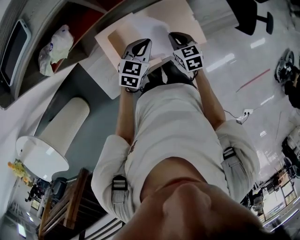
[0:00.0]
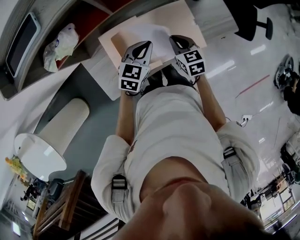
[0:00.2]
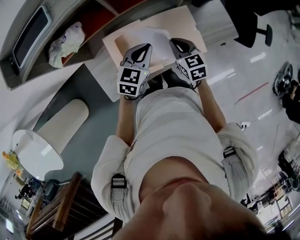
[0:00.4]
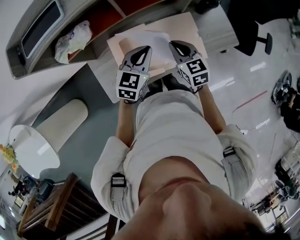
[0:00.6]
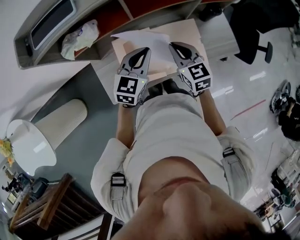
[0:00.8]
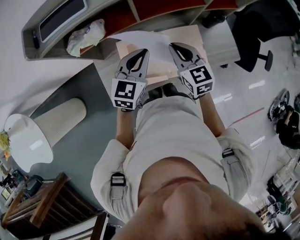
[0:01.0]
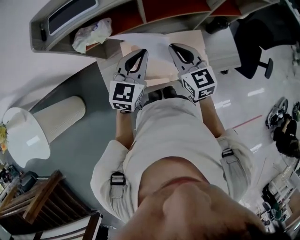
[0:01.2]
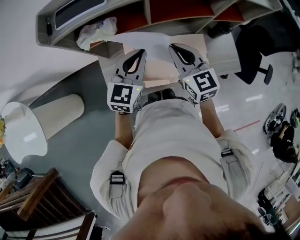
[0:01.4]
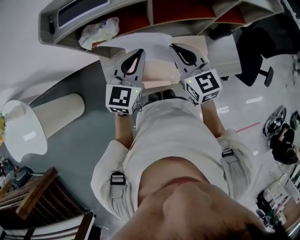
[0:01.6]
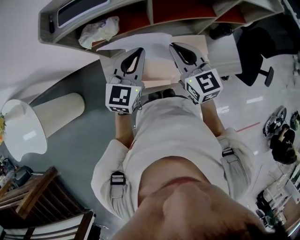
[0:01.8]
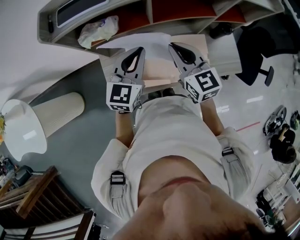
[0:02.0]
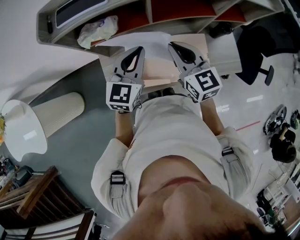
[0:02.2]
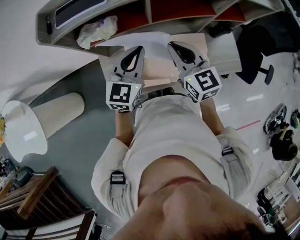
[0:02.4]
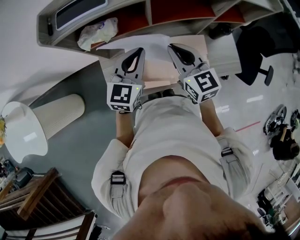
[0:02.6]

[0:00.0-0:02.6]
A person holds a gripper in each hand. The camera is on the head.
0:00.0 to 0:01.2: The two grippers go roughly 25 cm upward and to the left. The left gripper swivels some 30 degrees. The right gripper swivels about 30 degrees.
0:01.2 to 0:02.6: The grippers stay close to where they were, moving slightly.

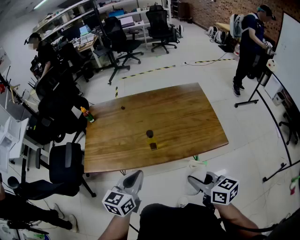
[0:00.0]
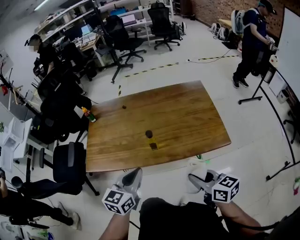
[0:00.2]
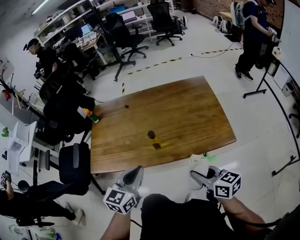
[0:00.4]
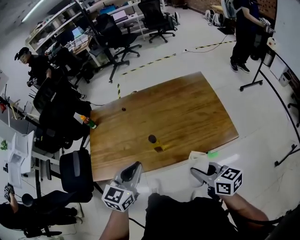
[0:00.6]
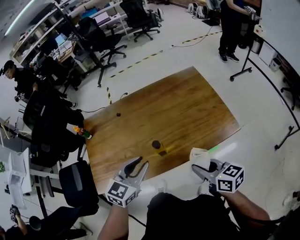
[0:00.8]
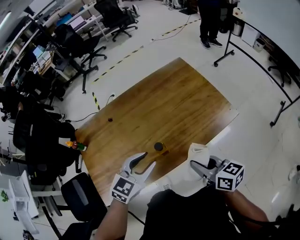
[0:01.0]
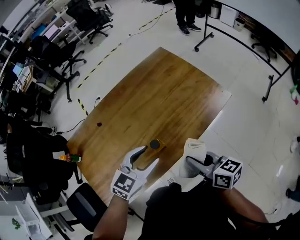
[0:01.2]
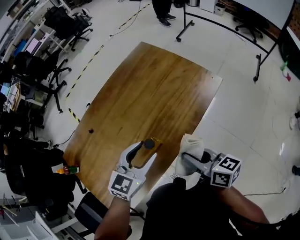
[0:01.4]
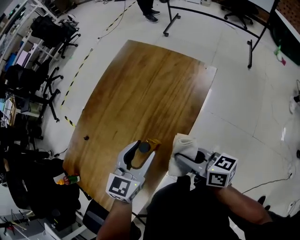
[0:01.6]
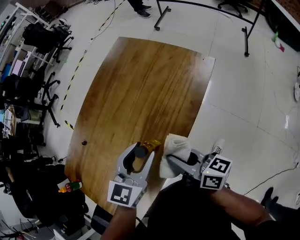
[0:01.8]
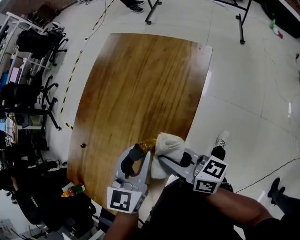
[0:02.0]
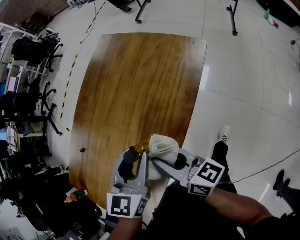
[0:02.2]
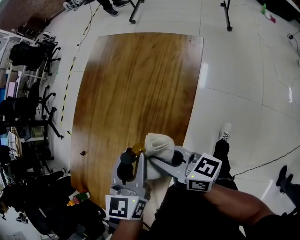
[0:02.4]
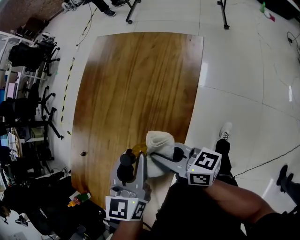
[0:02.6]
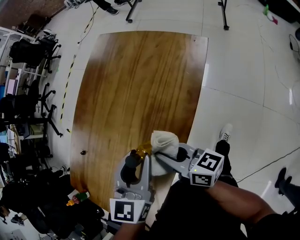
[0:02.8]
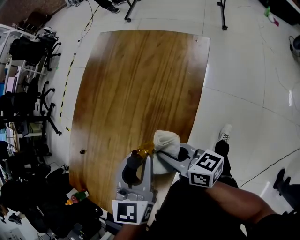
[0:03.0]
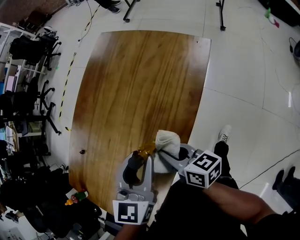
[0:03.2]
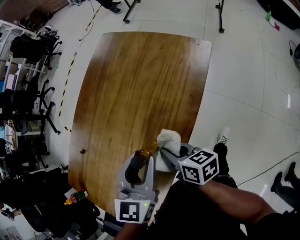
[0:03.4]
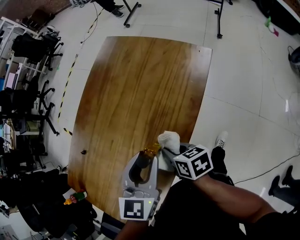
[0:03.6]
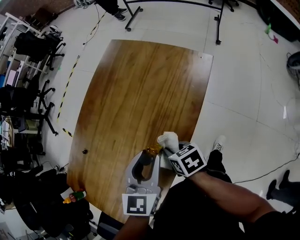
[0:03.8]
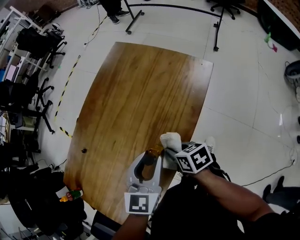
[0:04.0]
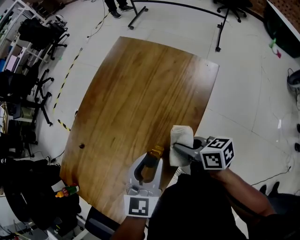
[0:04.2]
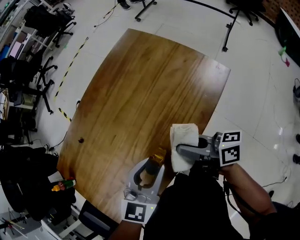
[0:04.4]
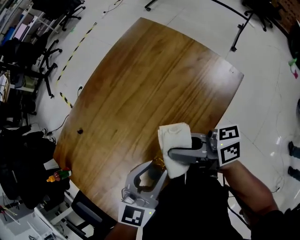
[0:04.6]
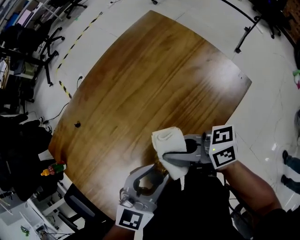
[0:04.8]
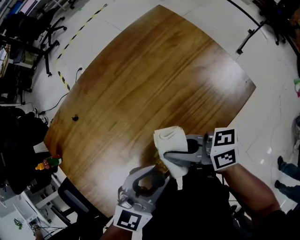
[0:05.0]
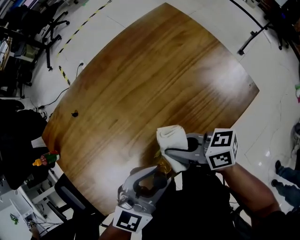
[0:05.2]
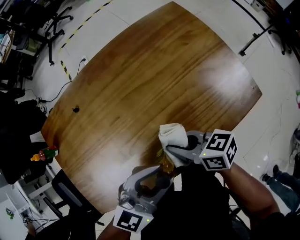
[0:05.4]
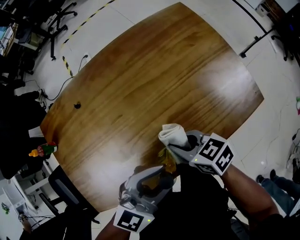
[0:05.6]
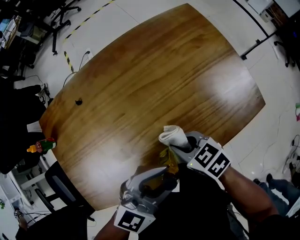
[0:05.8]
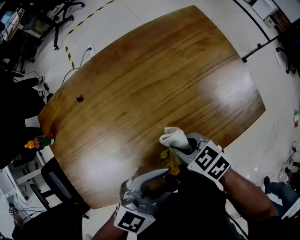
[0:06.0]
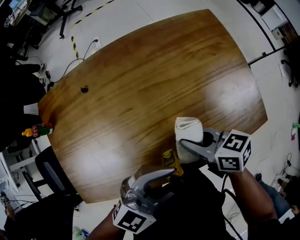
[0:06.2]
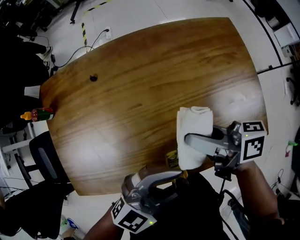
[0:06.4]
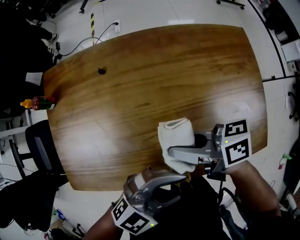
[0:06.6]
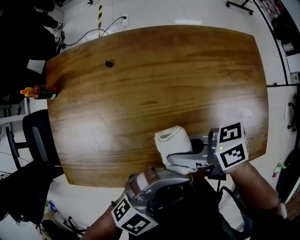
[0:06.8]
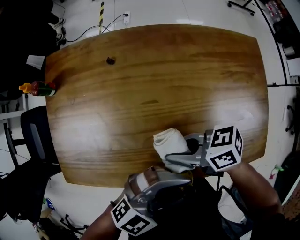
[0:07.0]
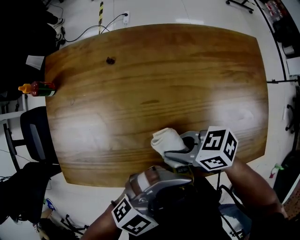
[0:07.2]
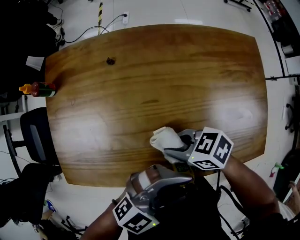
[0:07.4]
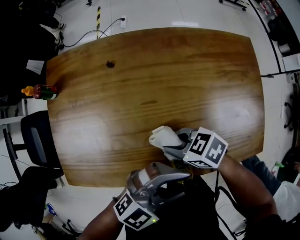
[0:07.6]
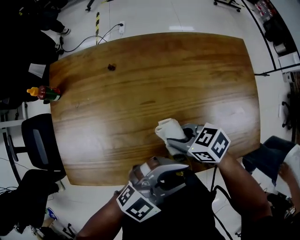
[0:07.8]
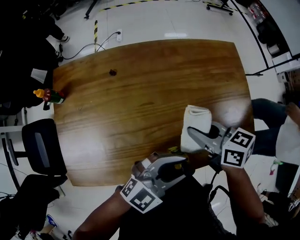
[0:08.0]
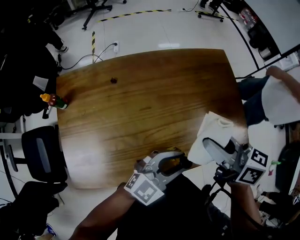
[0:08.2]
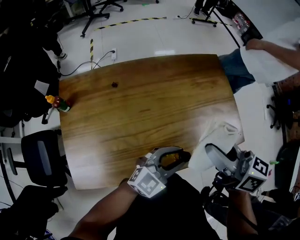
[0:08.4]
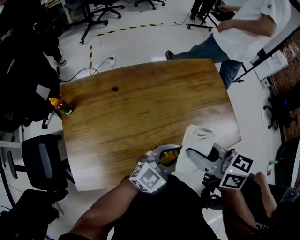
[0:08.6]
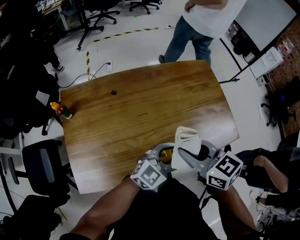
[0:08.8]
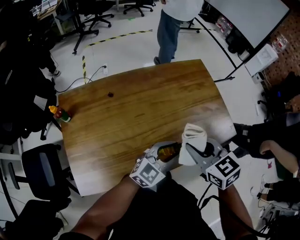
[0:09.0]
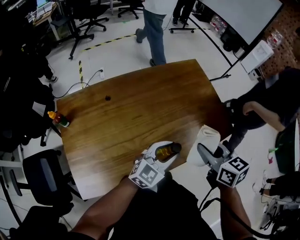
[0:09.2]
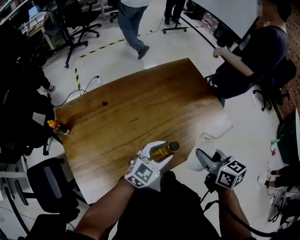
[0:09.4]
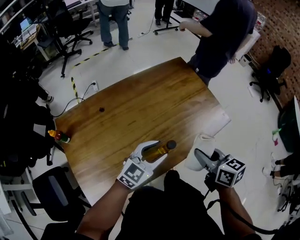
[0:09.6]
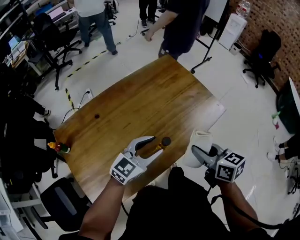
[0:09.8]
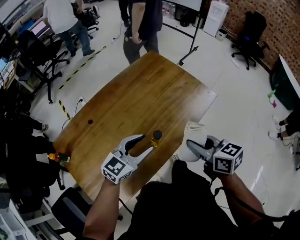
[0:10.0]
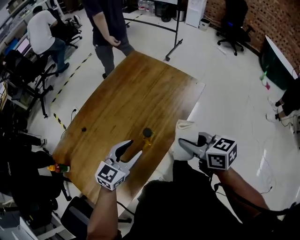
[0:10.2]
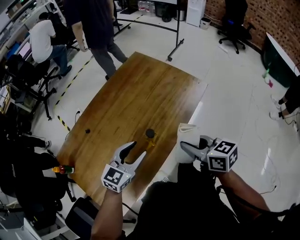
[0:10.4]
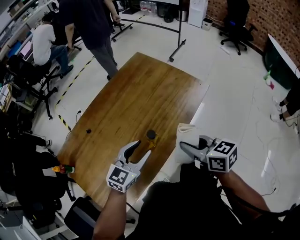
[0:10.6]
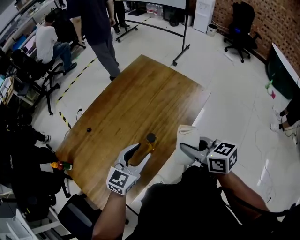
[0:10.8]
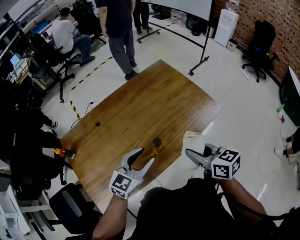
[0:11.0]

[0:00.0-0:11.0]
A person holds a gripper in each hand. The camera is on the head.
0:00.0 to 0:01.6: The right gripper moves roughly 20 cm, and swivels roughly 50 degrees; the left gripper changes place by about 20 cm, changes its angle by about 60 degrees, and opens.
0:01.6 to 0:03.2: The right gripper is displaced downward and to the left by about 10 cm.
0:03.2 to 0:04.8: The right gripper travels upward and forward by some 10 cm, and changes its angle by about 50 degrees.
0:04.8 to 0:06.2: The right gripper rotates roughly 30 degrees.
0:06.2 to 0:07.8: The right gripper shifts by approximately 10 cm, and turns by some 40 degrees.
0:07.8 to 0:09.4: The right gripper heads upward, covering roughly 20 cm, and rotates approximately 60 degrees.
0:09.4 to 0:11.0: The left gripper moves some 5 cm. Meanwhile the right gripper ends up about 5 cm from where it was.

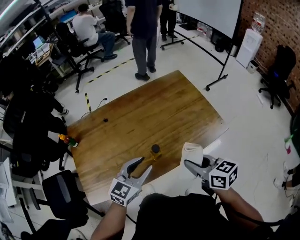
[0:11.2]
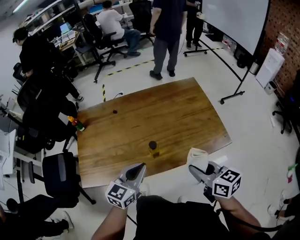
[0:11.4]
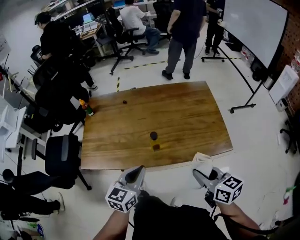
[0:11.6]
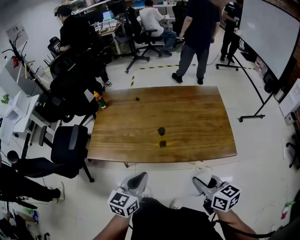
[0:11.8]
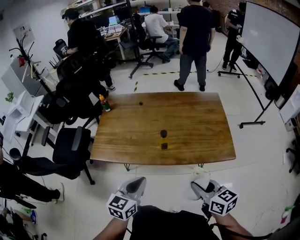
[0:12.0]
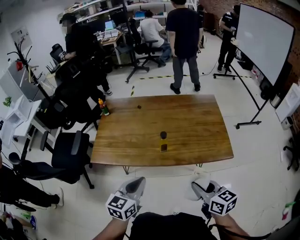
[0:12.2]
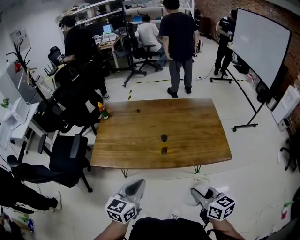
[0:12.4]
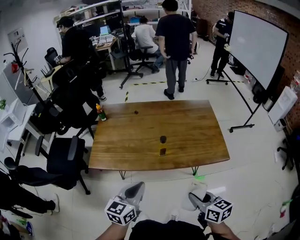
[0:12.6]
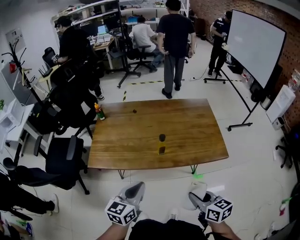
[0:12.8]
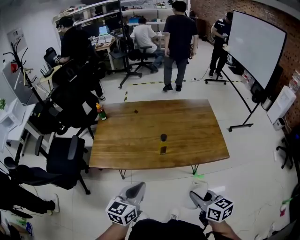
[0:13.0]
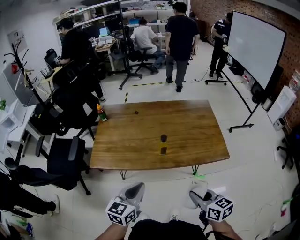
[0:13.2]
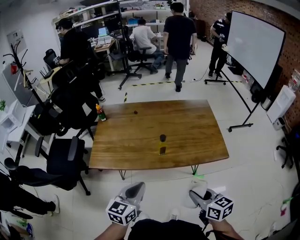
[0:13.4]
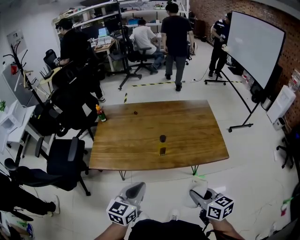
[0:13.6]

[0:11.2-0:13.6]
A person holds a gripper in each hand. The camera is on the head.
0:11.2 to 0:12.4: The left gripper ends up about 20 cm from where it was, turns by some 40 degrees, and closes its fingers; the right gripper moves approximately 15 cm.
0:12.4 to 0:13.6: The grippers stay close to where they were, moving slightly.

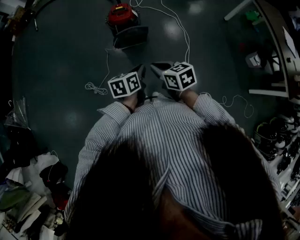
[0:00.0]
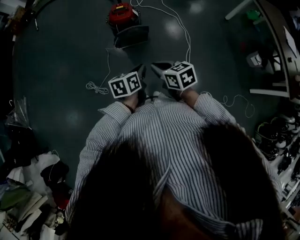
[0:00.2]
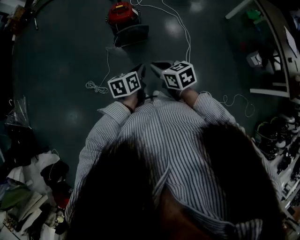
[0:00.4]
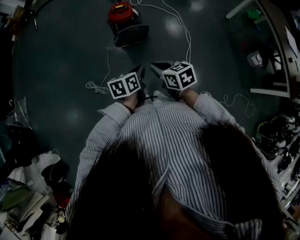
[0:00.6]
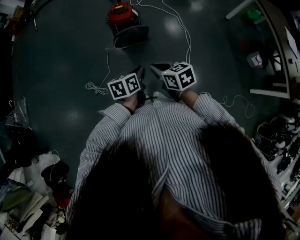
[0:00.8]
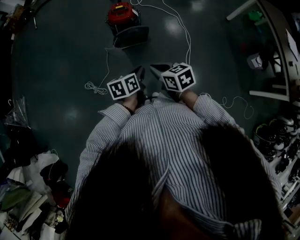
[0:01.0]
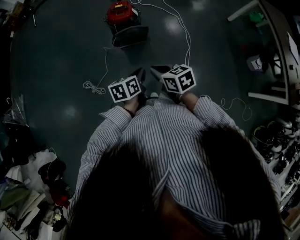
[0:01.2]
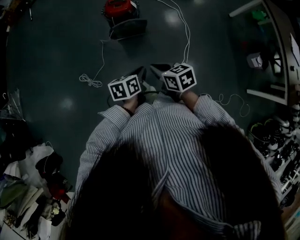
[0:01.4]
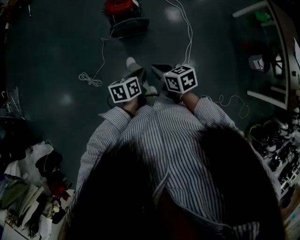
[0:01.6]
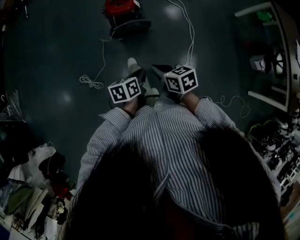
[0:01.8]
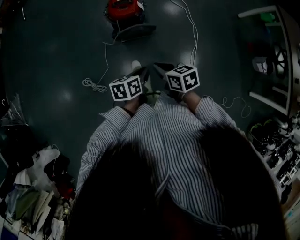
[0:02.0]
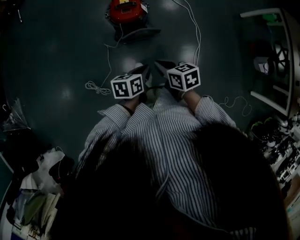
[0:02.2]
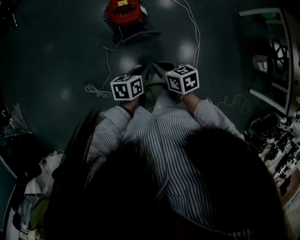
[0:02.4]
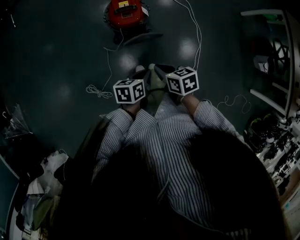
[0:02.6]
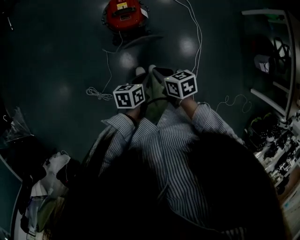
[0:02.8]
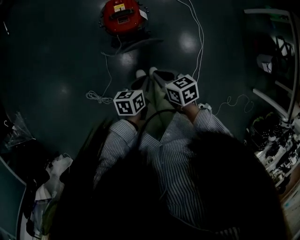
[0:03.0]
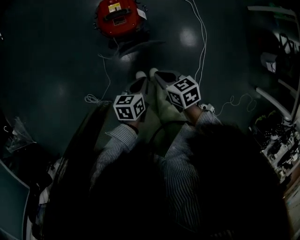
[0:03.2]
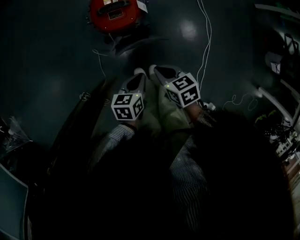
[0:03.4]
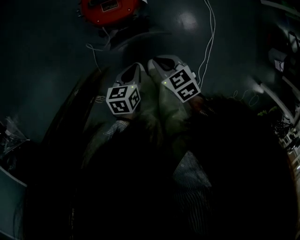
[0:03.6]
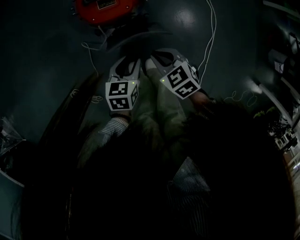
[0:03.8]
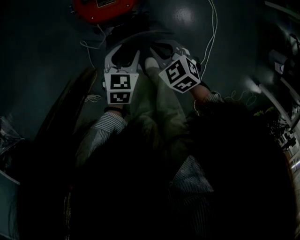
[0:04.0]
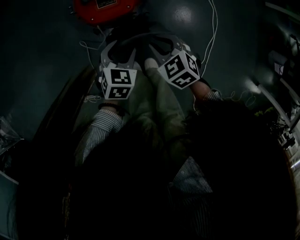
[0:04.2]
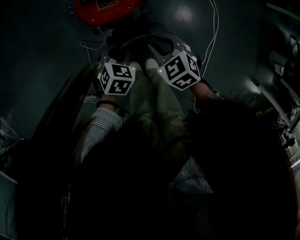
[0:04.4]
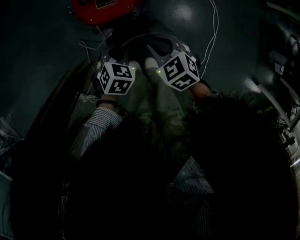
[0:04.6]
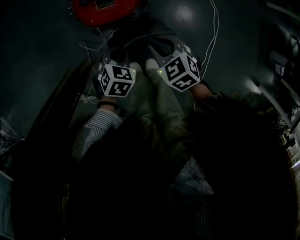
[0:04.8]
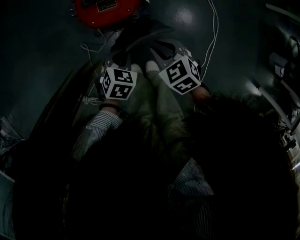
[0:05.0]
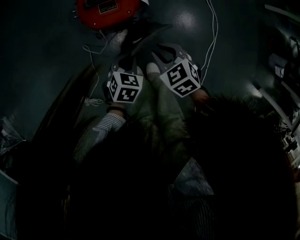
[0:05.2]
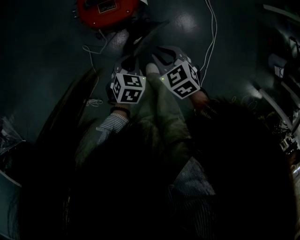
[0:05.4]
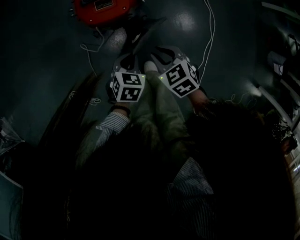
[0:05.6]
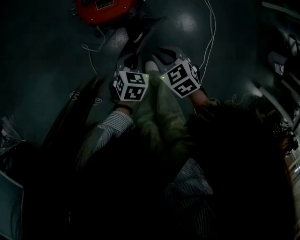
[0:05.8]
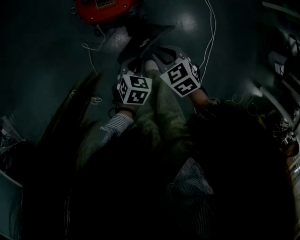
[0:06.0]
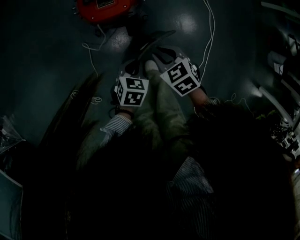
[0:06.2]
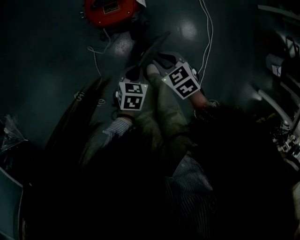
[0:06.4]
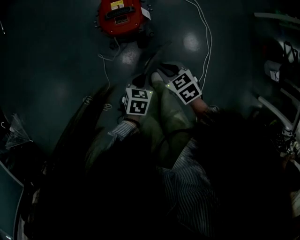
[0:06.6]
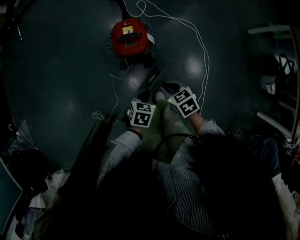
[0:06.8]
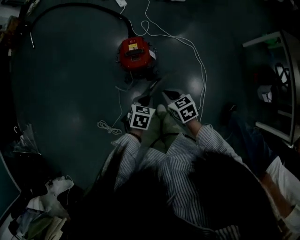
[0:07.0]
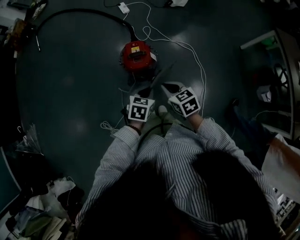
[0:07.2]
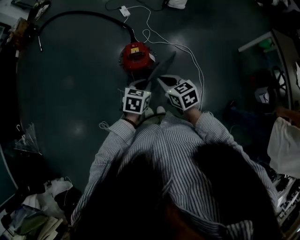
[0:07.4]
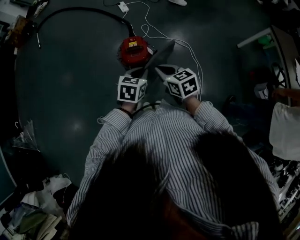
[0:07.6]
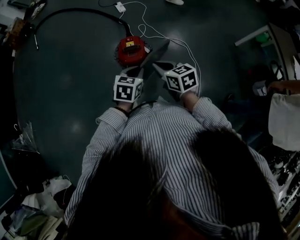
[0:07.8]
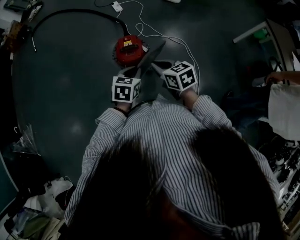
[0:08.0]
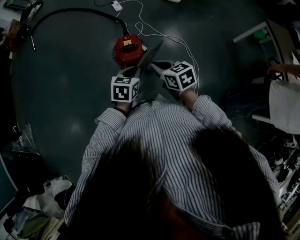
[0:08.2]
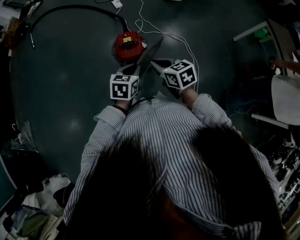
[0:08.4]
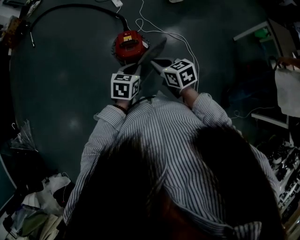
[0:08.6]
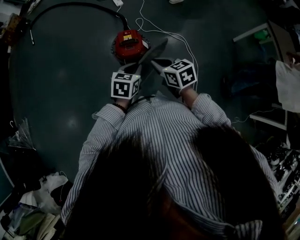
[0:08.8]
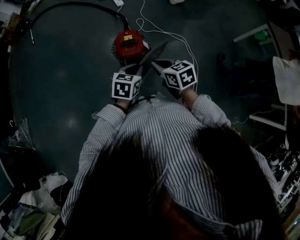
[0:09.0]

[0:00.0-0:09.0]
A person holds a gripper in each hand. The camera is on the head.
0:00.0 to 0:01.6: The left gripper travels downward by about 5 cm; the right gripper moves downward and forward, approximately 10 cm.
0:01.6 to 0:03.0: Both grippers travel together forward, some 25 cm.
0:03.0 to 0:04.4: Both grippers travel together downward and forward, approximately 25 cm. The right gripper rotates about 40 degrees. Meanwhile the left gripper rotates around the line of its fingers by some 40 degrees, clockwise from behind, and opens its fingers.
0:04.4 to 0:06.0: The right gripper shifts approximately 5 cm backward. The left gripper is displaced backward and to the right by approximately 10 cm, and closes its fingers.
0:06.0 to 0:07.6: The grippers both shift upward by about 40 cm. The left gripper changes its angle by approximately 20 degrees. The right gripper changes its angle by approximately 30 degrees.
0:07.6 to 0:09.0: There are only small adjustments of the grippers.
